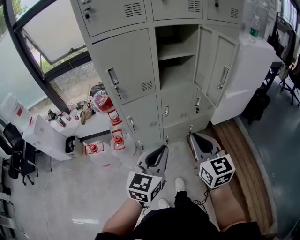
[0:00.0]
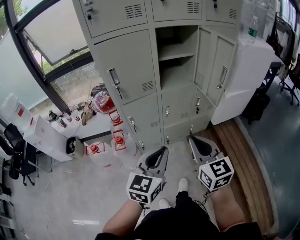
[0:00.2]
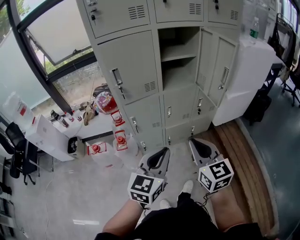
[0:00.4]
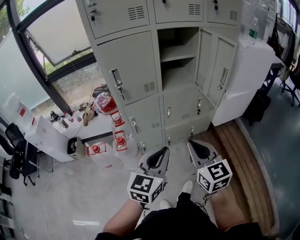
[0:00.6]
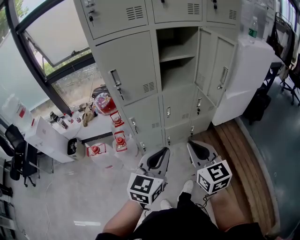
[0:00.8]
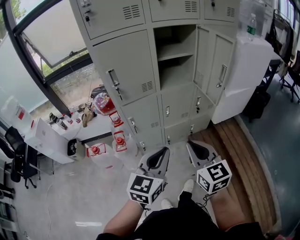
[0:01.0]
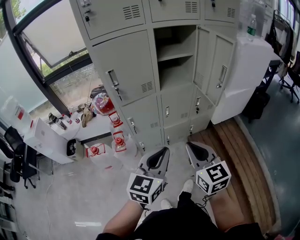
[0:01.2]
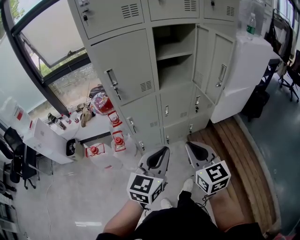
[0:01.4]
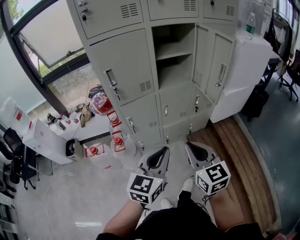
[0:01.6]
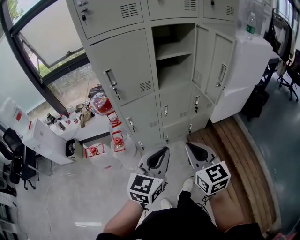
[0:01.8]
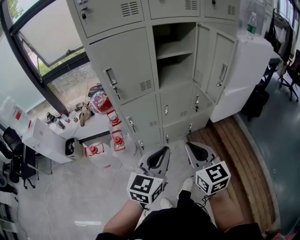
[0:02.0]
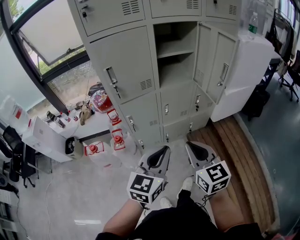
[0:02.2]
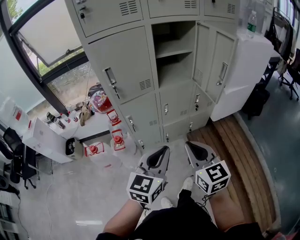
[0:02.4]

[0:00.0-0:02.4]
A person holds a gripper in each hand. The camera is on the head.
0:00.0 to 0:01.2: The grippers make only small movements.
0:01.2 to 0:02.4: Neither gripper changes place.

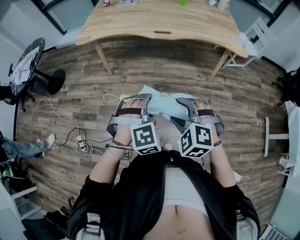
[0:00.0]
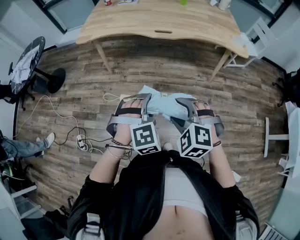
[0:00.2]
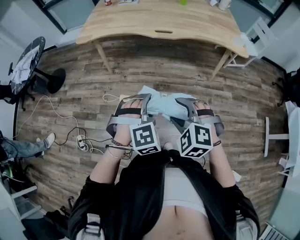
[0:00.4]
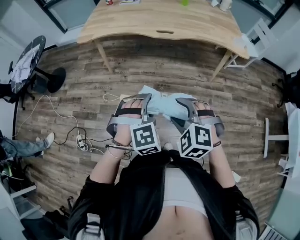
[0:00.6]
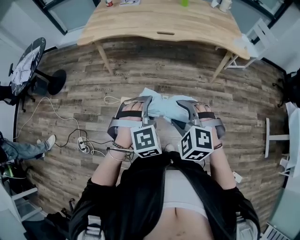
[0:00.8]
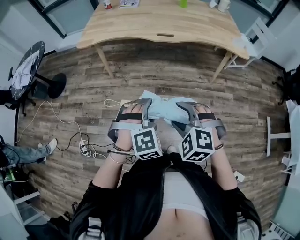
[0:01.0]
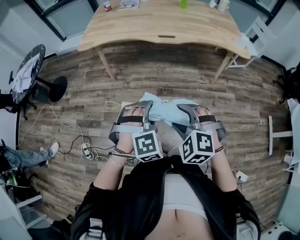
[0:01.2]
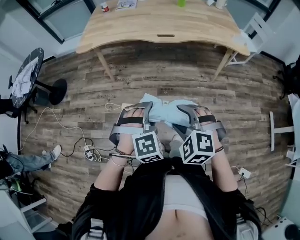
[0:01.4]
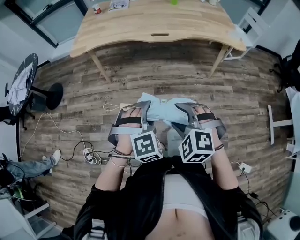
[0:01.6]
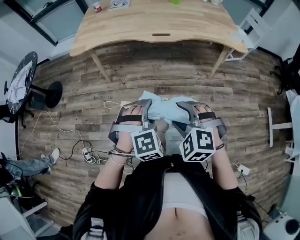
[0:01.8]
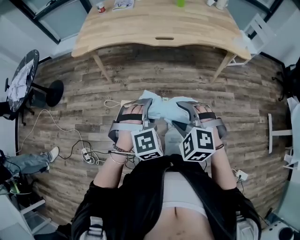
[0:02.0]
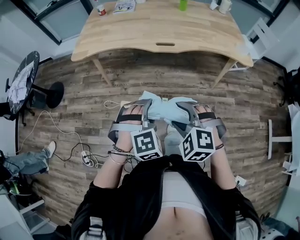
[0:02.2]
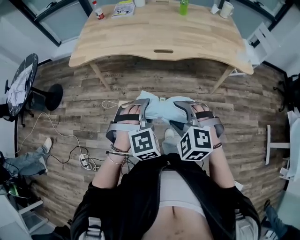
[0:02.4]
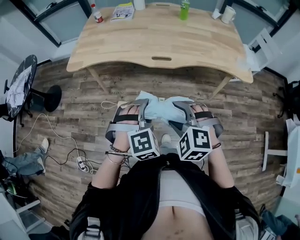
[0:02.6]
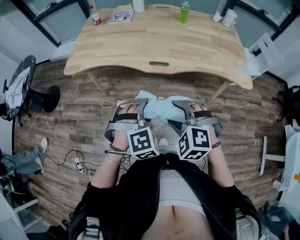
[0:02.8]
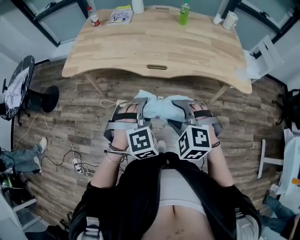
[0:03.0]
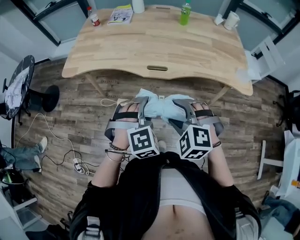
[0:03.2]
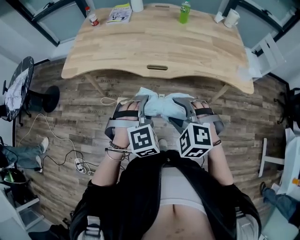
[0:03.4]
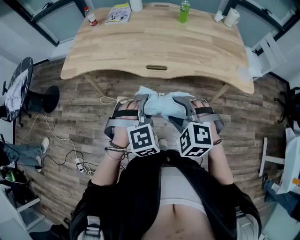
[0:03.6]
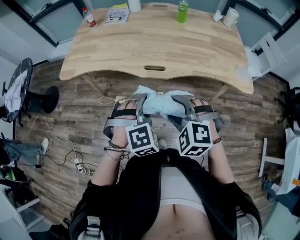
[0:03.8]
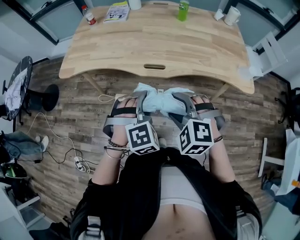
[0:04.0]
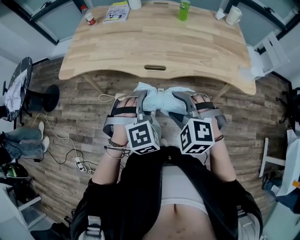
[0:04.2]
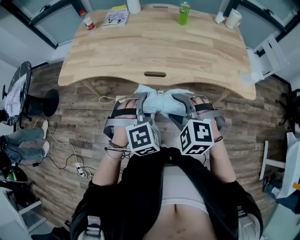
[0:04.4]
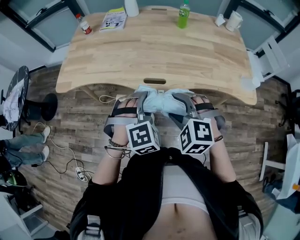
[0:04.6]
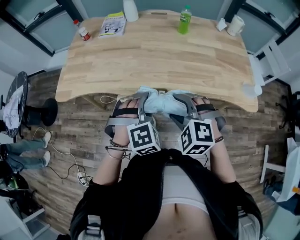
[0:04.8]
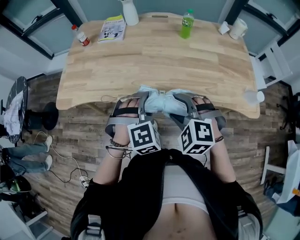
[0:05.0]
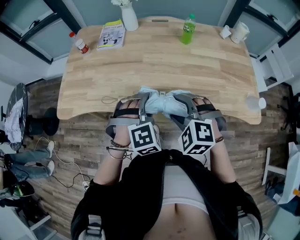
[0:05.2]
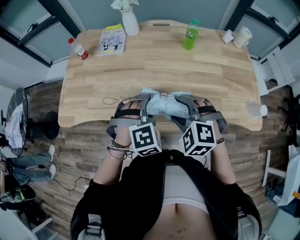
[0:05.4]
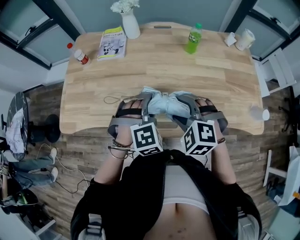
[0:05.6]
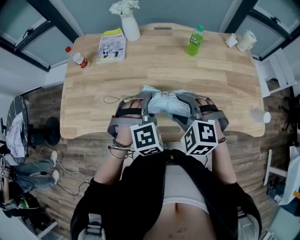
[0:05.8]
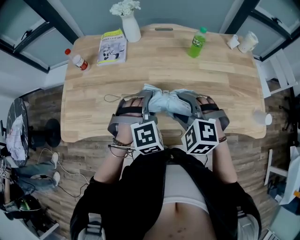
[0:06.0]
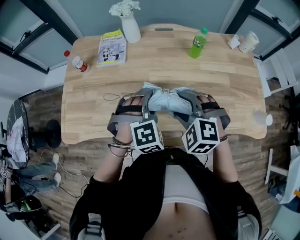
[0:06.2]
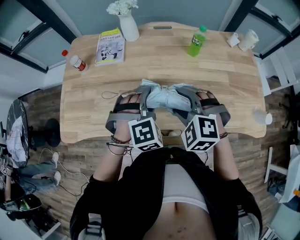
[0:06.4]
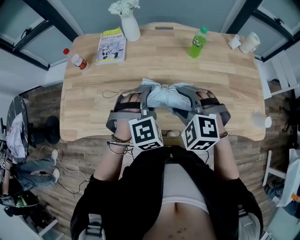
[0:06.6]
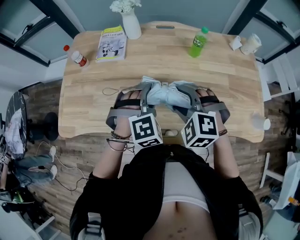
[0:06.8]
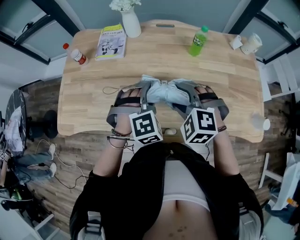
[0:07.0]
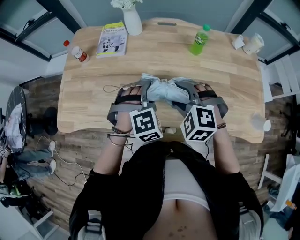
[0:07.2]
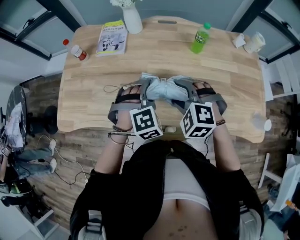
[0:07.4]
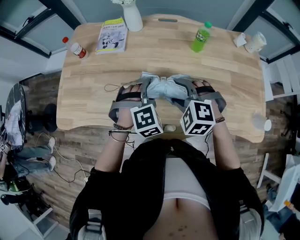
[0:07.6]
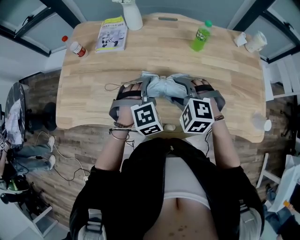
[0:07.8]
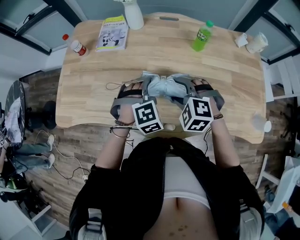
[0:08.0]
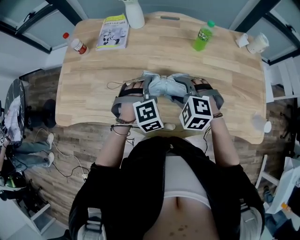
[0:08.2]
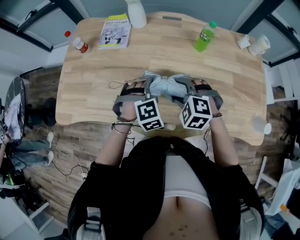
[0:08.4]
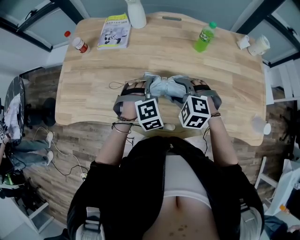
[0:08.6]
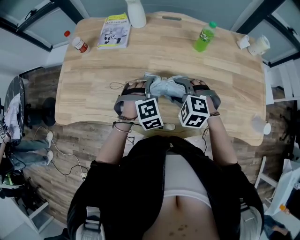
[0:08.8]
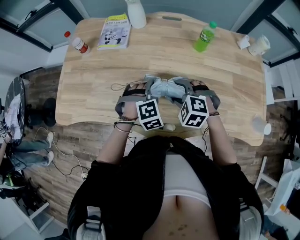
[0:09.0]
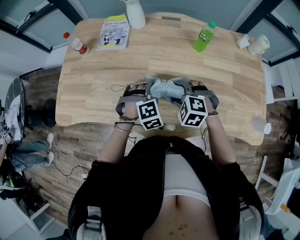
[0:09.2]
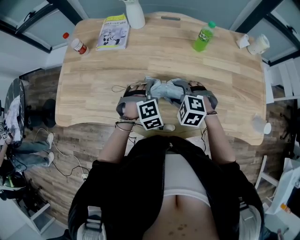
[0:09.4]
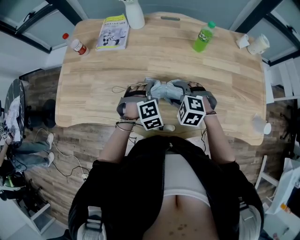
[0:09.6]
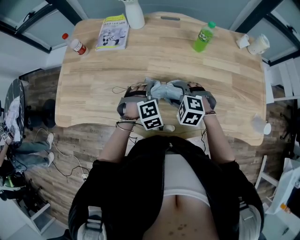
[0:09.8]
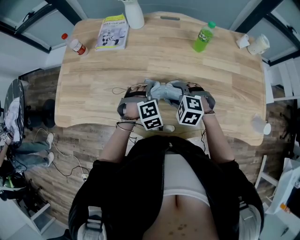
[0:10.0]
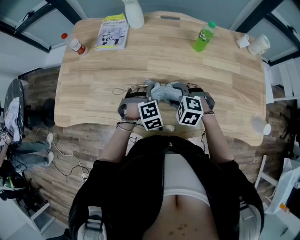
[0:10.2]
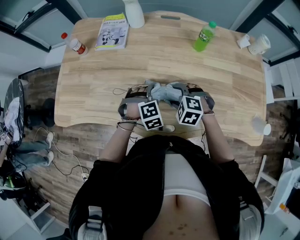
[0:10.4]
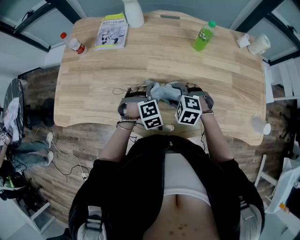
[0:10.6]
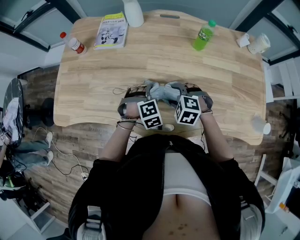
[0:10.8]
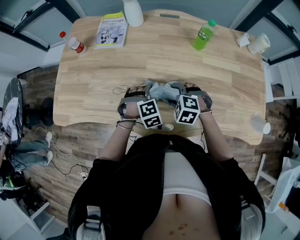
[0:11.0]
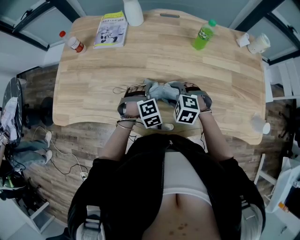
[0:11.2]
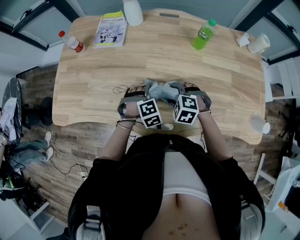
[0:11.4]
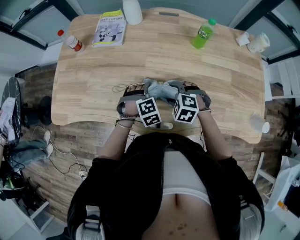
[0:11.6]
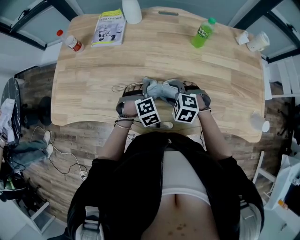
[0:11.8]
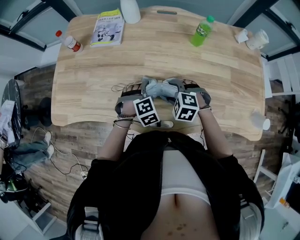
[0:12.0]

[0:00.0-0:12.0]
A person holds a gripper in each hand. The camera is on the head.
0:00.0 to 0:01.6: The right gripper changes place by approximately 5 cm; the left gripper shifts by roughly 5 cm.
0:01.6 to 0:03.0: The grippers both shift forward and to the right by approximately 25 cm.
0:03.0 to 0:04.4: Both grippers travel together forward, about 10 cm.
0:04.4 to 0:06.0: Both grippers move forward, approximately 35 cm.
0:06.0 to 0:07.6: The right gripper shifts by some 5 cm. Meanwhile the left gripper ends up approximately 5 cm from where it was.
0:07.6 to 0:09.0: Both grippers move downward, some 5 cm.
0:09.0 to 0:10.4: The grippers both shift downward by some 5 cm.
0:10.4 to 0:12.0: The grippers make only small movements.

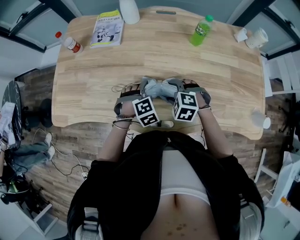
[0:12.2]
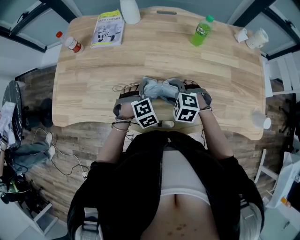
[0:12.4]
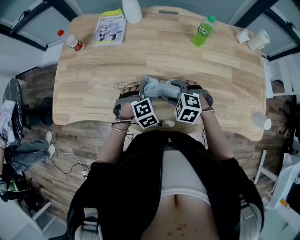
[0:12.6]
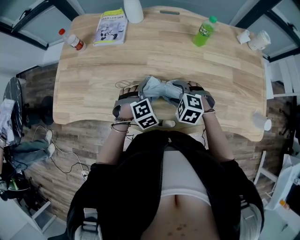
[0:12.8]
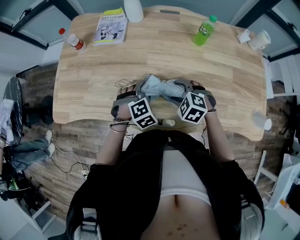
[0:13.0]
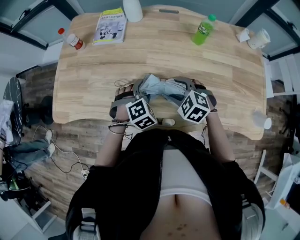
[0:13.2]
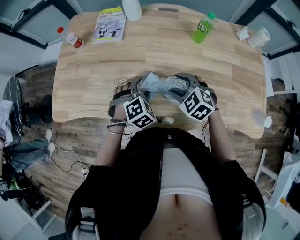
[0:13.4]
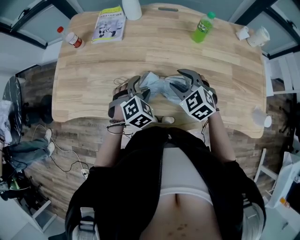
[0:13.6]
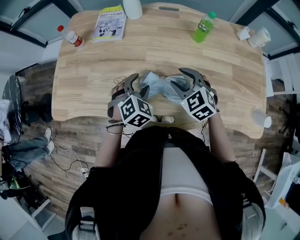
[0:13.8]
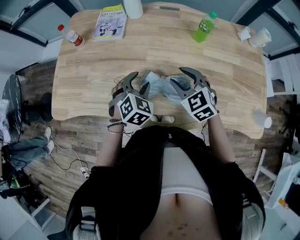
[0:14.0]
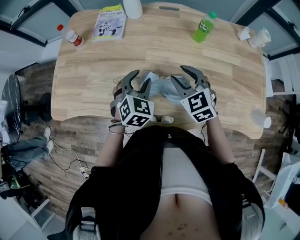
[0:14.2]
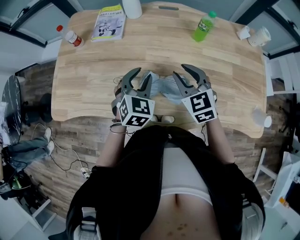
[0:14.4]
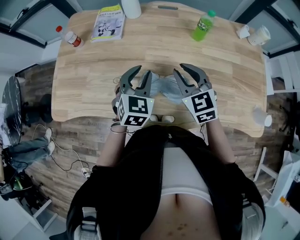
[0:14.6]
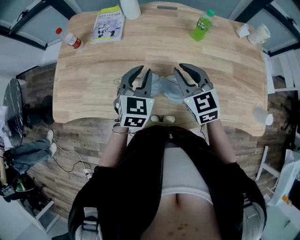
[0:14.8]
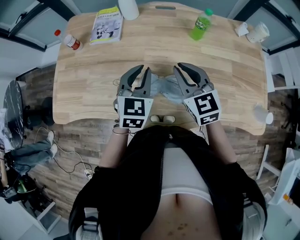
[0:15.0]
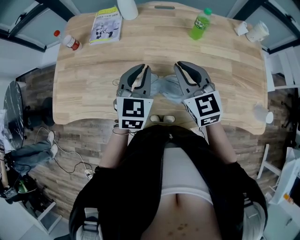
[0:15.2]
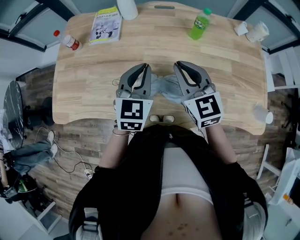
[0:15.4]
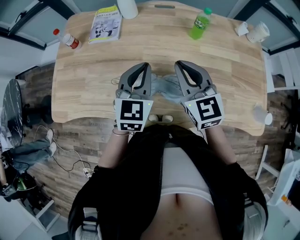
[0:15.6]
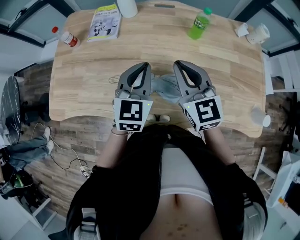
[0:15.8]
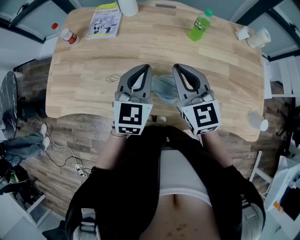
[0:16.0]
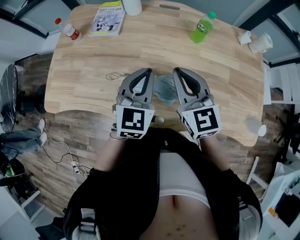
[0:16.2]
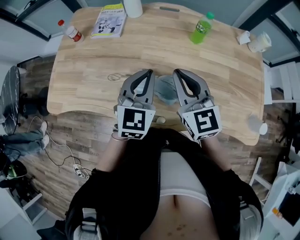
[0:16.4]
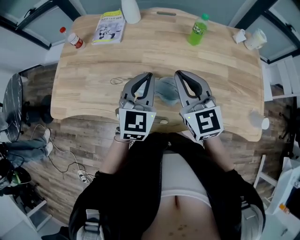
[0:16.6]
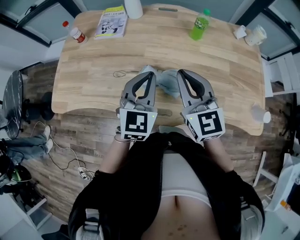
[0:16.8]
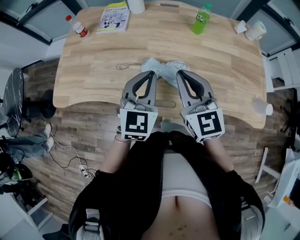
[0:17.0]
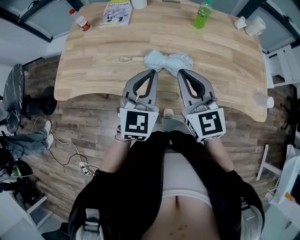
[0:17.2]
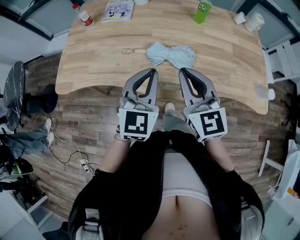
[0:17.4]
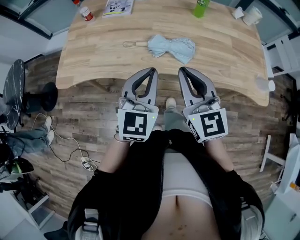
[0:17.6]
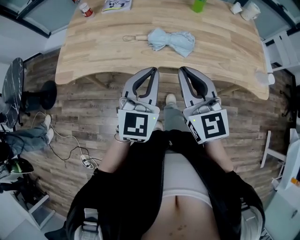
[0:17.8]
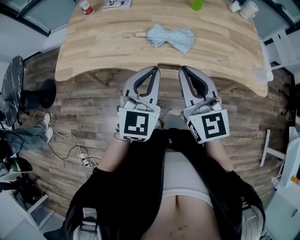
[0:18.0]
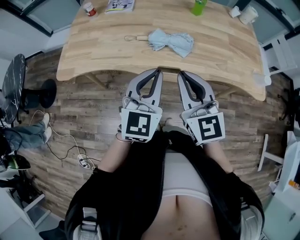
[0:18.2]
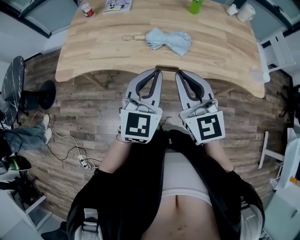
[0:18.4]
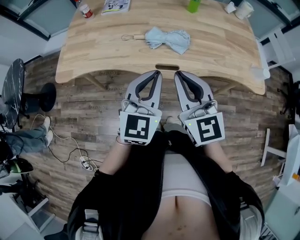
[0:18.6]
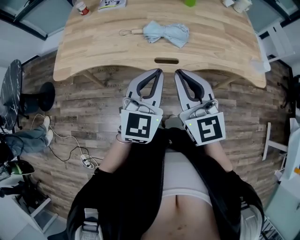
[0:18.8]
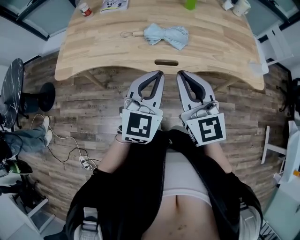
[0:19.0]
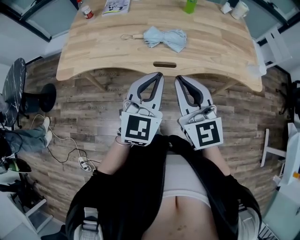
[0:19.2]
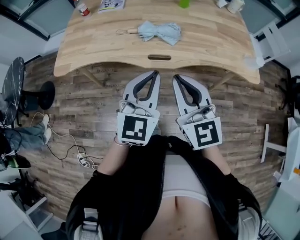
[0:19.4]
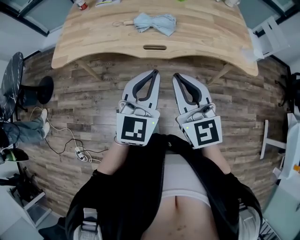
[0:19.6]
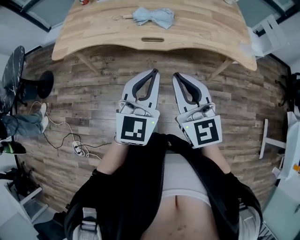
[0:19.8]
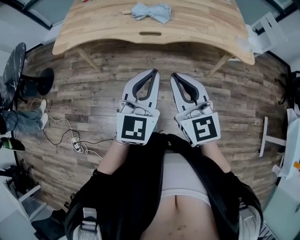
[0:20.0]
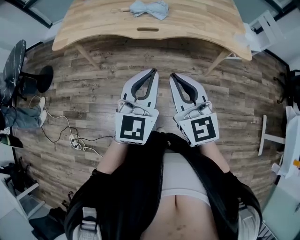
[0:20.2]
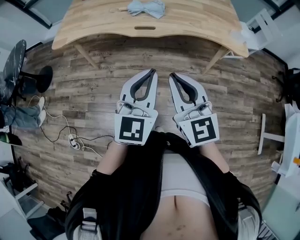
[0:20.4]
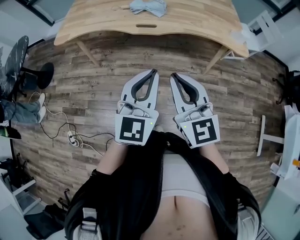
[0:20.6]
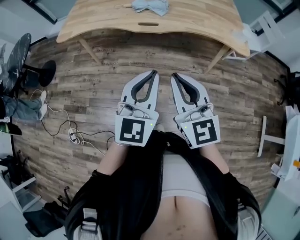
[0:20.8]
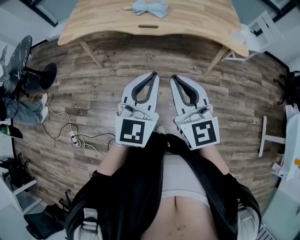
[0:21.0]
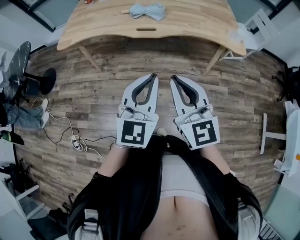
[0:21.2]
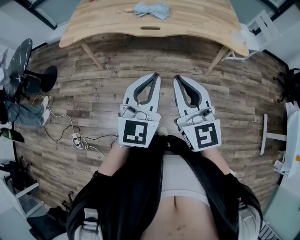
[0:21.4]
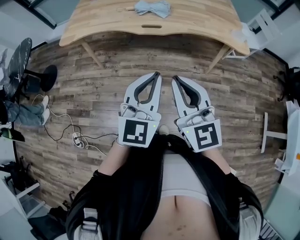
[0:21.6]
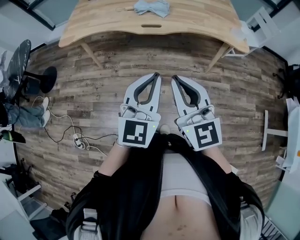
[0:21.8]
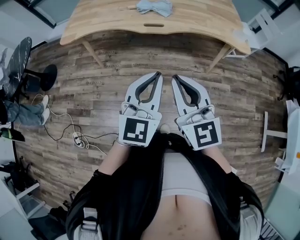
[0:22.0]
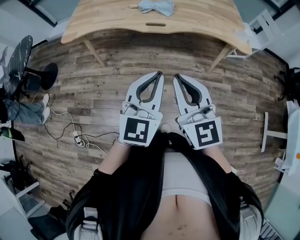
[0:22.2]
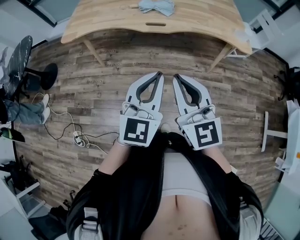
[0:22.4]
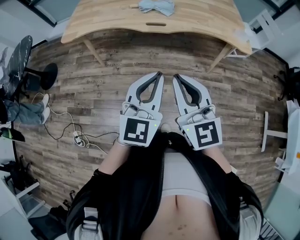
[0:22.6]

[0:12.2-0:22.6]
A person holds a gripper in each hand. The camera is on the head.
0:12.2 to 0:13.6: Both grippers move upward, about 10 cm. The right gripper turns by roughly 30 degrees.
0:13.6 to 0:15.2: The two grippers go about 10 cm upward. The left gripper changes its angle by about 40 degrees, and closes; the right gripper turns by about 30 degrees, and closes.
0:15.2 to 0:16.6: The left gripper heads backward, covering some 5 cm, while the right gripper ends up roughly 5 cm from where it was.
0:16.6 to 0:18.2: The grippers both shift backward by some 25 cm.
0:18.2 to 0:19.6: The right gripper goes some 15 cm backward. The left gripper shifts about 15 cm backward and to the right.
0:19.6 to 0:21.2: Both grippers move backward, some 20 cm.
0:21.2 to 0:22.6: The grippers move only a little.
